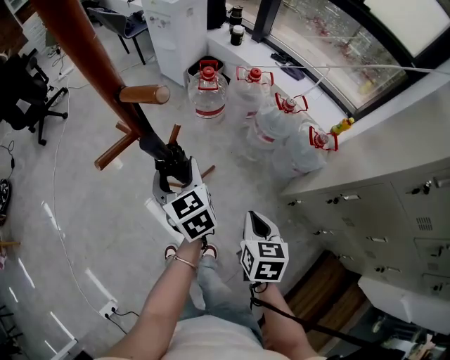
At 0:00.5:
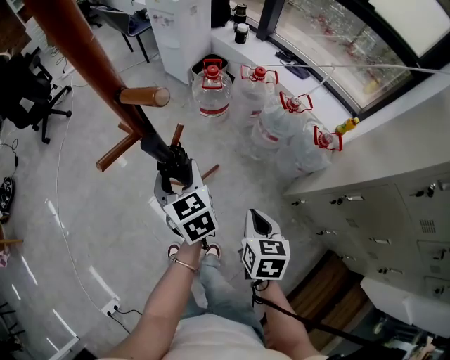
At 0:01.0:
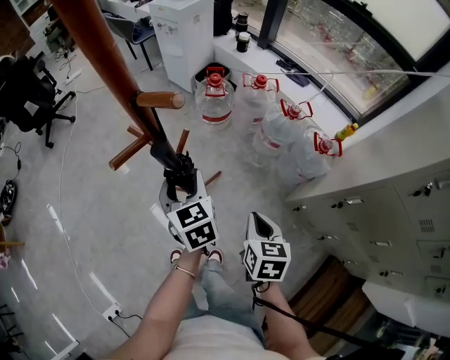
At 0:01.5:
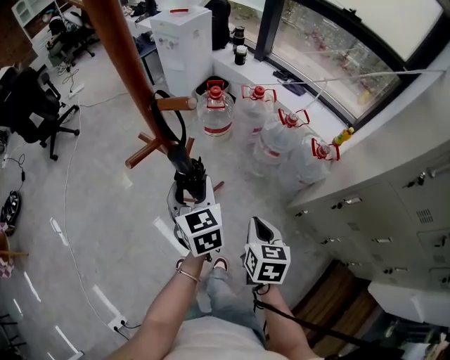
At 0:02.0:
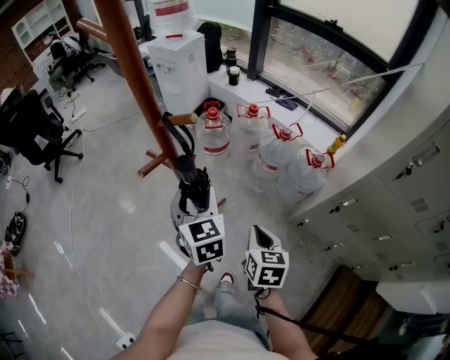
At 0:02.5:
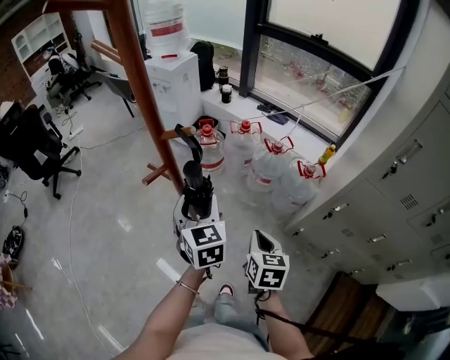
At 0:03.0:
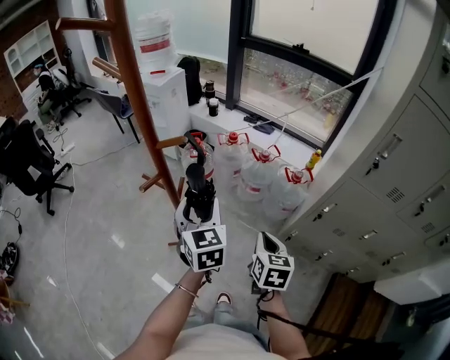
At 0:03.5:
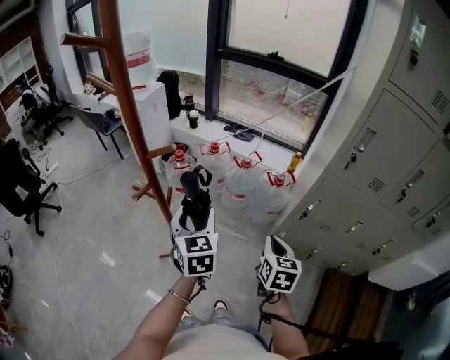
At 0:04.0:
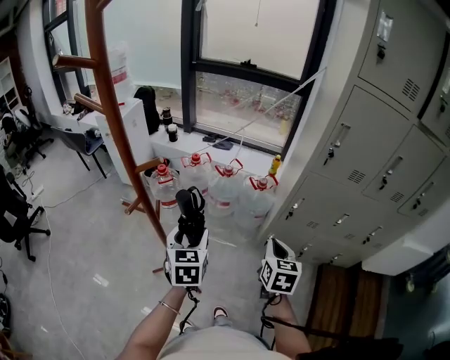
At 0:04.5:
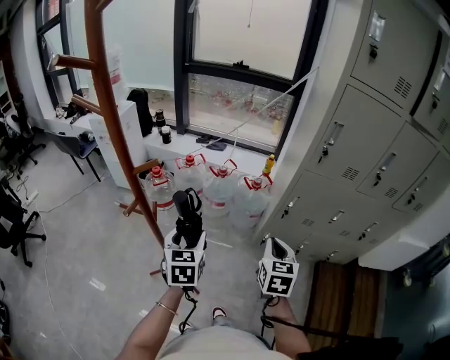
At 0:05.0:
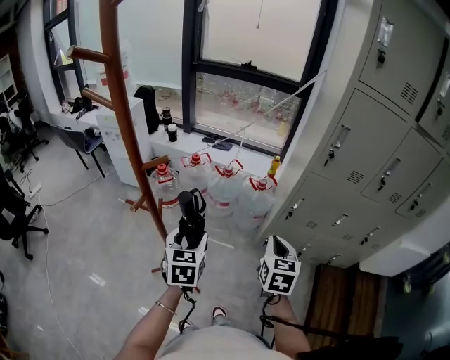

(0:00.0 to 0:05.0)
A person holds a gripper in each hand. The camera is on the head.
0:00.0 - 0:02.5: The left gripper goes roughly 15 cm upward and backward, and swivels about 20 degrees. The right gripper is displaced upward by about 5 cm.
0:02.5 - 0:05.0: The left gripper ends up about 10 cm from where it was, and rotates about 30 degrees, while the right gripper changes place by approximately 15 cm, and changes its angle by roughly 30 degrees.

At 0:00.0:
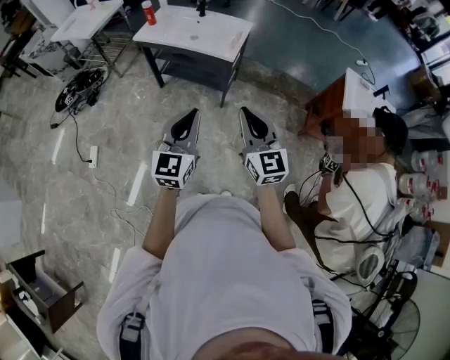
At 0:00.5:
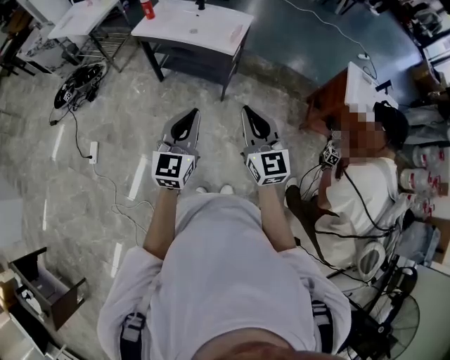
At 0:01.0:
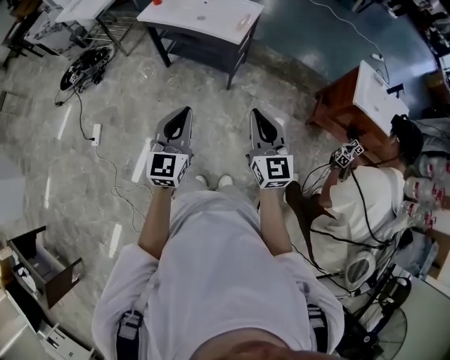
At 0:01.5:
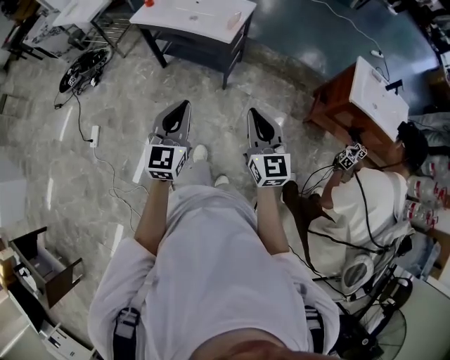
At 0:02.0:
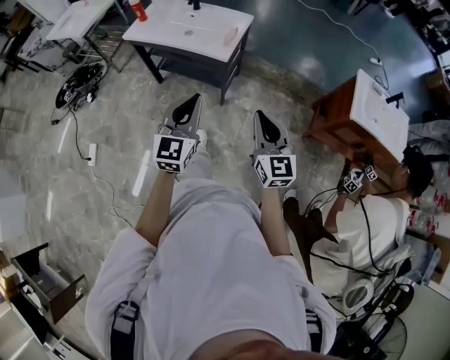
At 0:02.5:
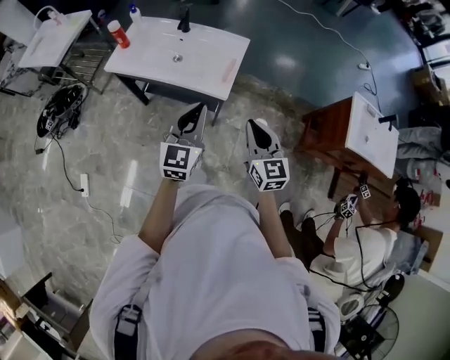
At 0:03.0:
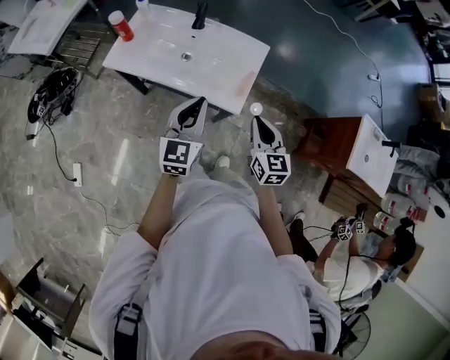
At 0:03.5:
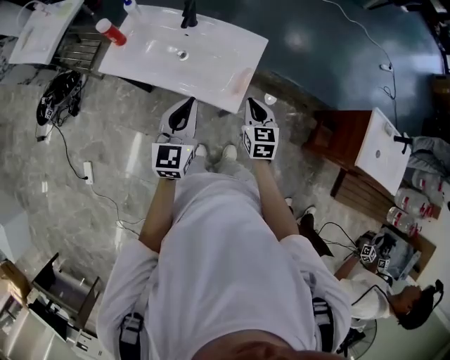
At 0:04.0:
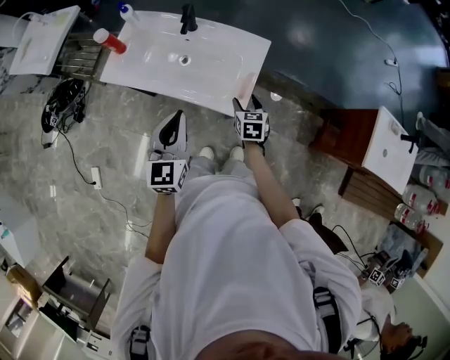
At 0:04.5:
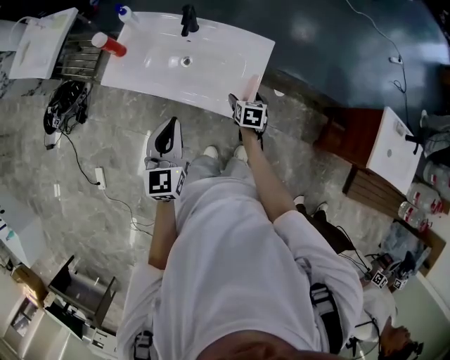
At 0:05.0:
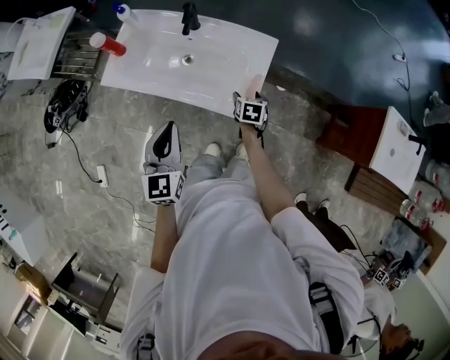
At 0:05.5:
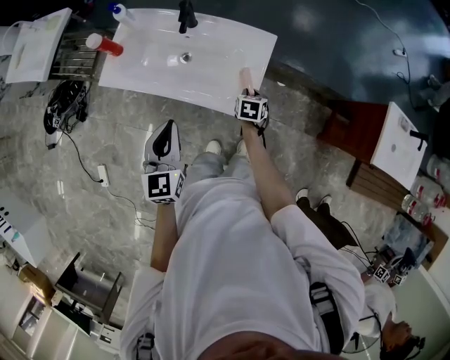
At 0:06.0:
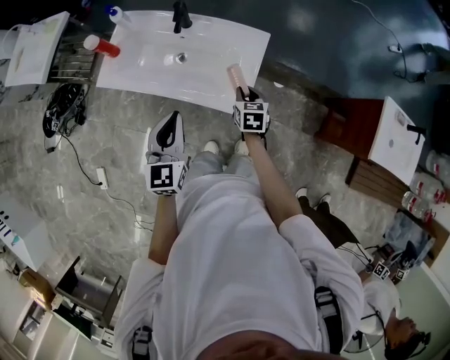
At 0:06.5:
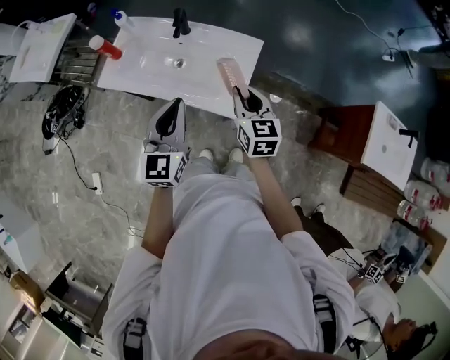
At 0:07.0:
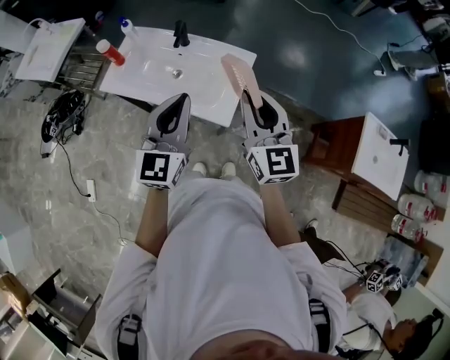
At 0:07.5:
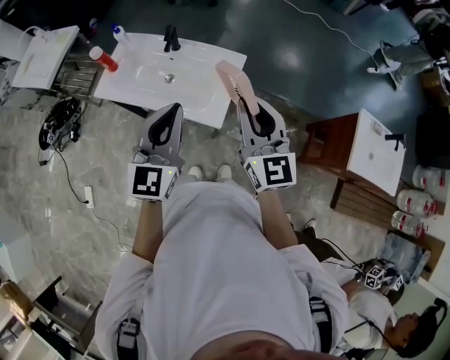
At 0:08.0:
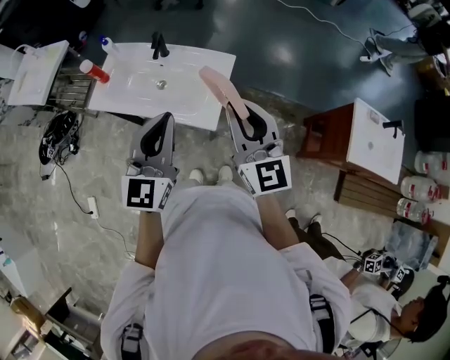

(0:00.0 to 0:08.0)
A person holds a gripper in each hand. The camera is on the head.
0:00.0 - 0:02.0: The right gripper is displaced to the right, forward and downward by roughly 20 cm. Meanwhile the left gripper goes about 15 cm forward and to the right.
0:02.0 - 0:04.0: Both grippers are carried forward, roughly 40 cm. The right gripper shifts roughly 25 cm downward, points its fingers some 40 degrees further downward, and opens up.
0:04.0 - 0:06.0: The right gripper goes downward and returns, approximately 10 cm each way, and closes.
0:06.0 - 0:08.0: The right gripper moves upward, some 35 cm, and angles its fingers upward, by approximately 50 degrees. Meanwhile the left gripper moves upward and to the right, about 20 cm.

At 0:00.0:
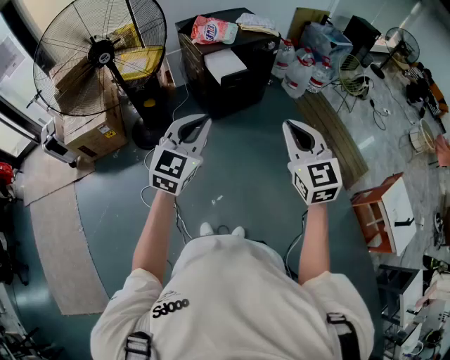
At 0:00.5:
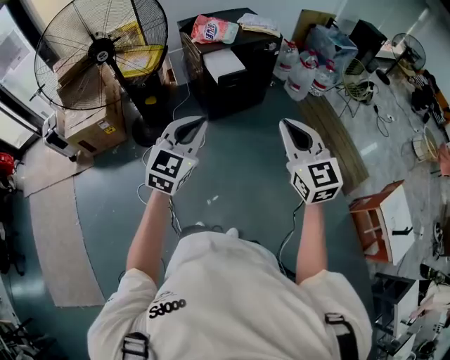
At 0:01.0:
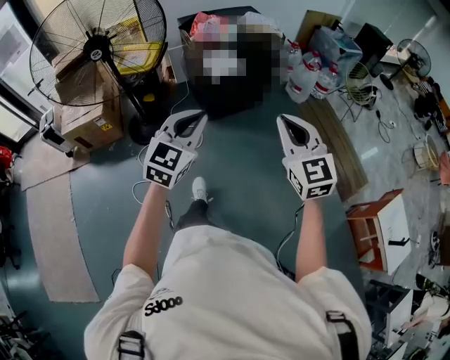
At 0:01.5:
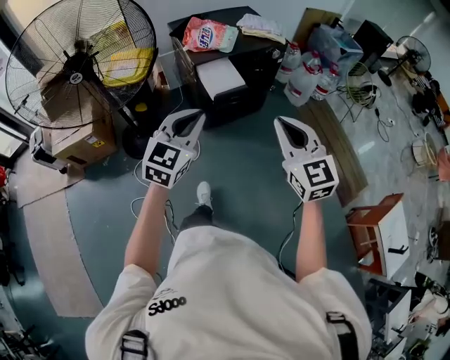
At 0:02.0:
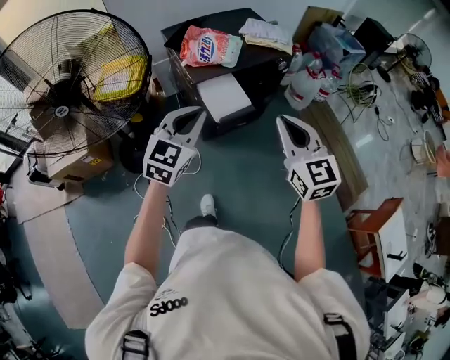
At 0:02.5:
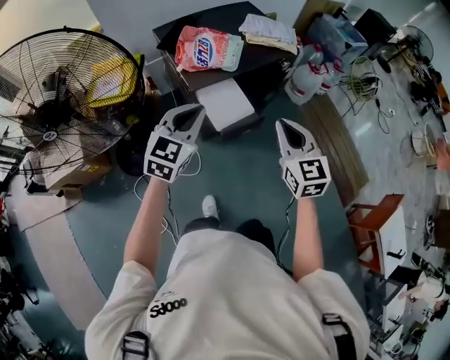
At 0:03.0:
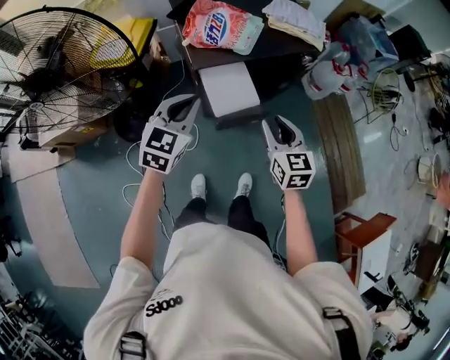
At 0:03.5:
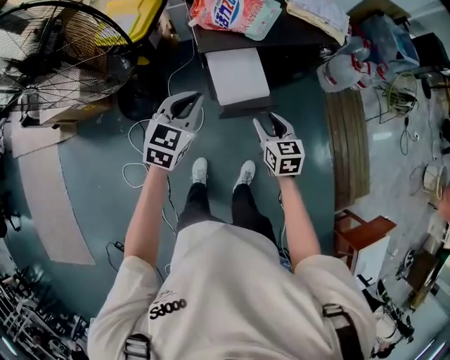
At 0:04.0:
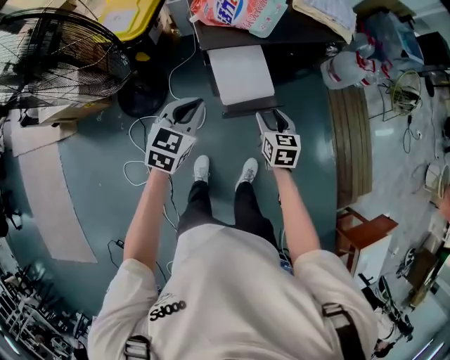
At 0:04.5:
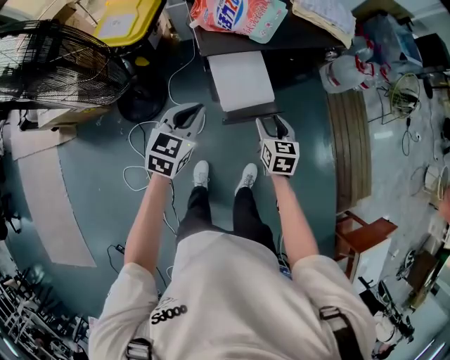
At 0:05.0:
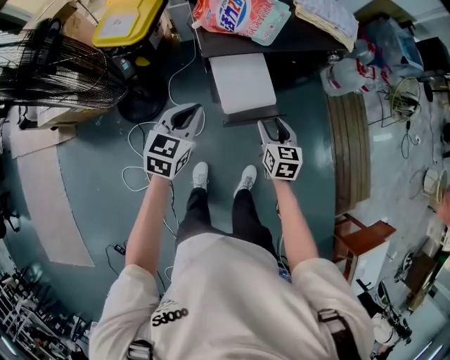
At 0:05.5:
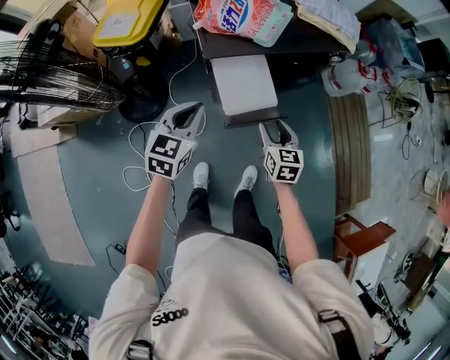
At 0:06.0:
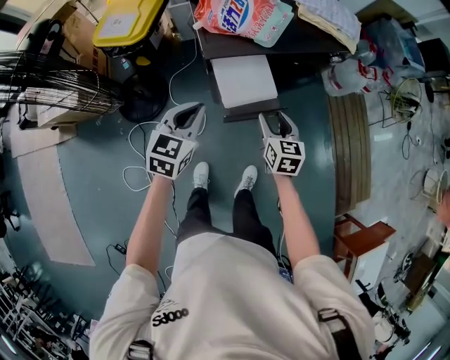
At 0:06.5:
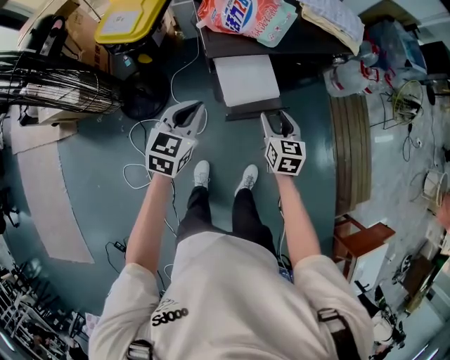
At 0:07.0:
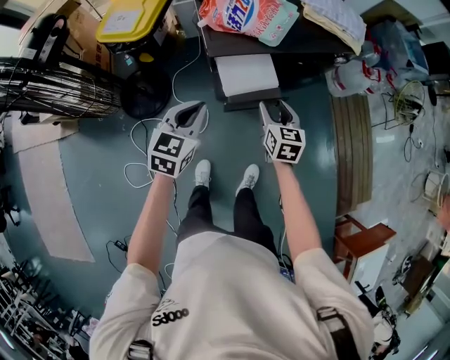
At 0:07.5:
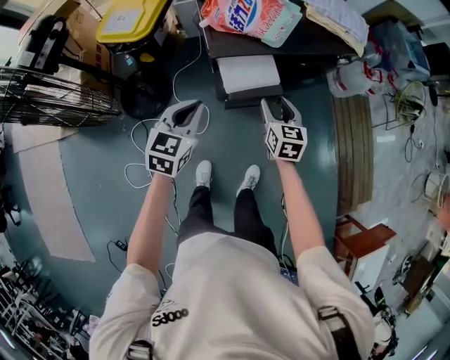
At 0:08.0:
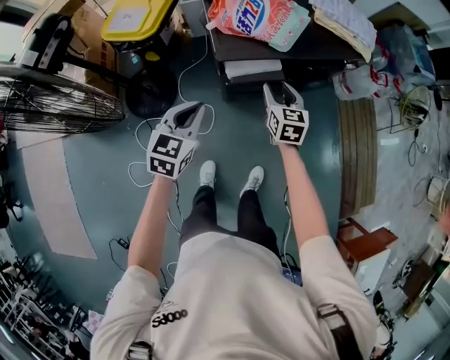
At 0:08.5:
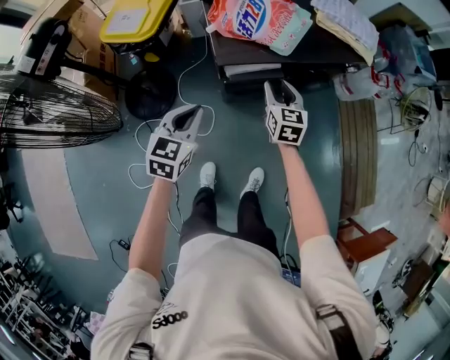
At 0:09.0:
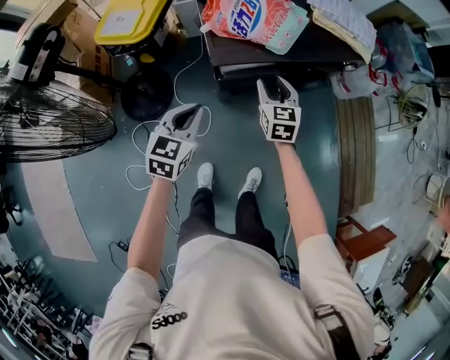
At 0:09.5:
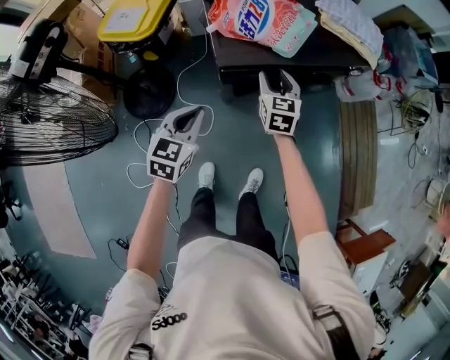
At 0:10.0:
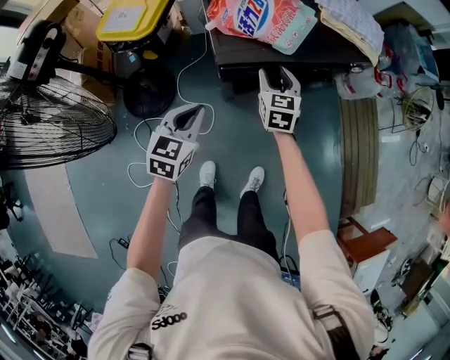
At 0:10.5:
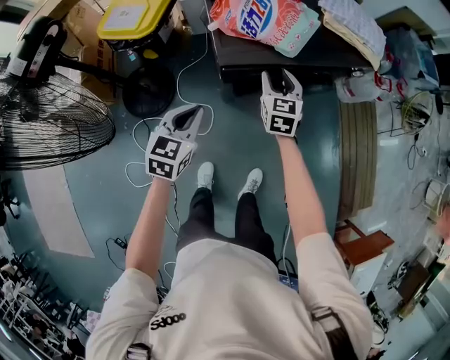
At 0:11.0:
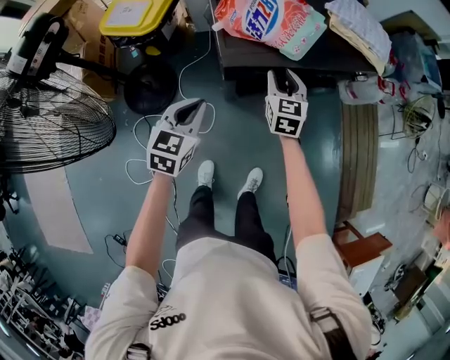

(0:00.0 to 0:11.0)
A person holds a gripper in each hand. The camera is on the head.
0:00.0 - 0:02.0: The grippers both shift forward by approximately 40 cm.
0:02.0 - 0:03.5: The right gripper is displaced downward and forward by approximately 35 cm, turns by roughly 30 degrees, and opens its fingers. Meanwhile the left gripper shifts roughly 20 cm downward and forward, and turns by some 20 degrees.
0:03.5 - 0:05.5: The right gripper shifts by about 5 cm; the left gripper shifts by some 5 cm.
0:05.5 - 0:07.5: The right gripper goes approximately 5 cm forward.
0:07.5 - 0:09.0: The right gripper is displaced forward by approximately 10 cm.
0:09.0 - 0:11.0: The grippers move only a little.

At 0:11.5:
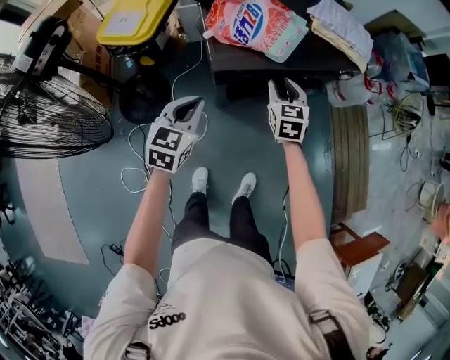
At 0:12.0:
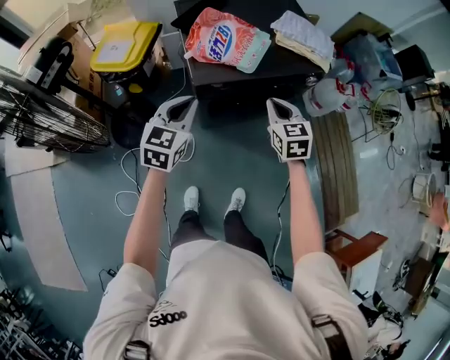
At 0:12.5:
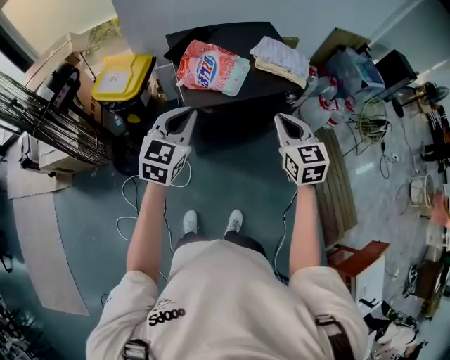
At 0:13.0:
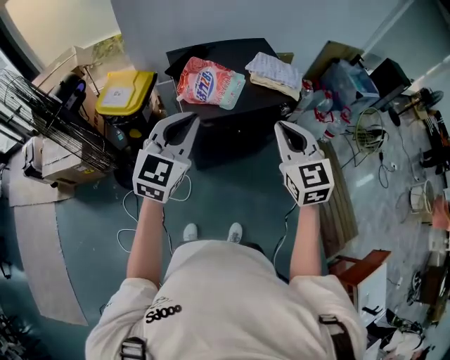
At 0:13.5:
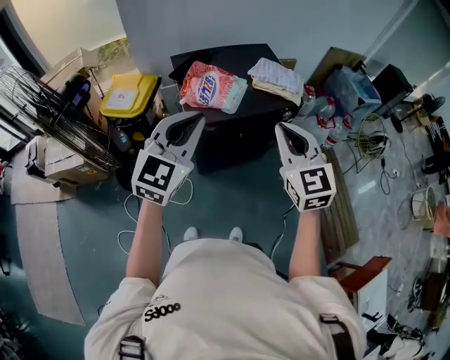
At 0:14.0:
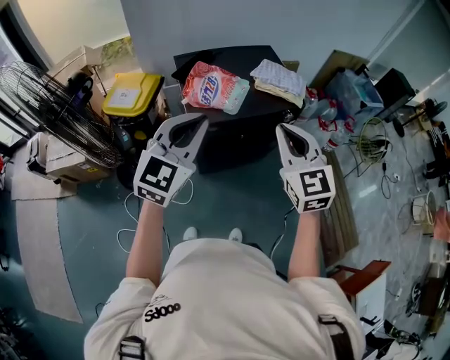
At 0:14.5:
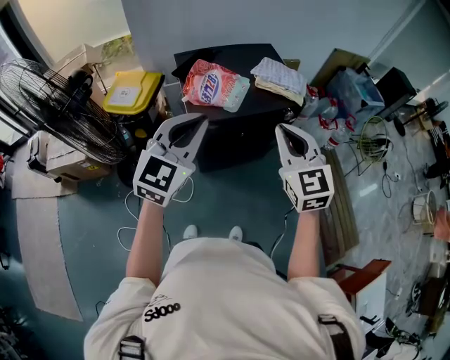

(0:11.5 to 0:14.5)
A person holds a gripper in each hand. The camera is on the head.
0:11.5 - 0:13.0: The right gripper moves upward and backward, about 35 cm, turns by approximately 20 degrees, and closes up. Meanwhile the left gripper shifts approximately 30 cm upward, and rotates about 30 degrees.
0:13.0 - 0:14.5: The grippers move only a little.
